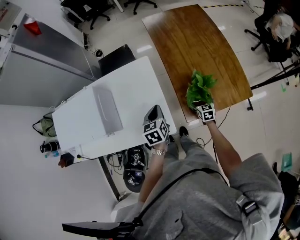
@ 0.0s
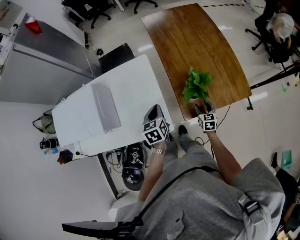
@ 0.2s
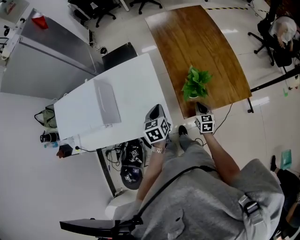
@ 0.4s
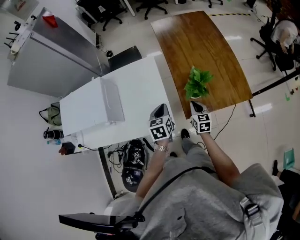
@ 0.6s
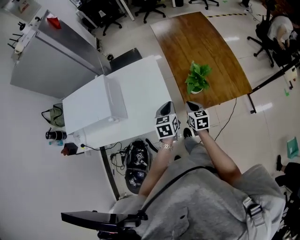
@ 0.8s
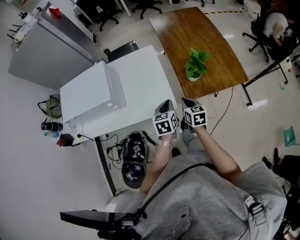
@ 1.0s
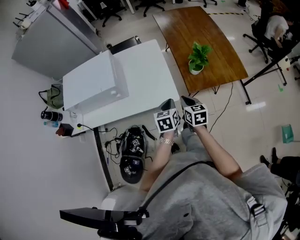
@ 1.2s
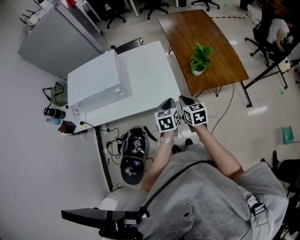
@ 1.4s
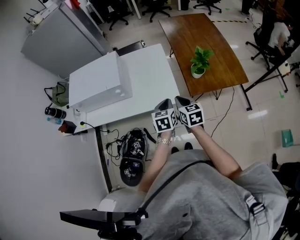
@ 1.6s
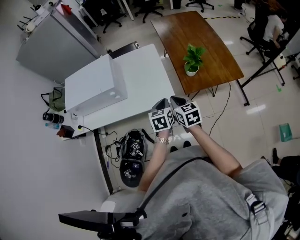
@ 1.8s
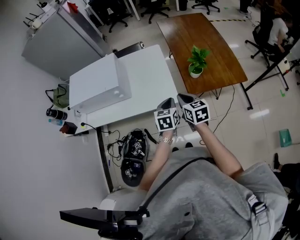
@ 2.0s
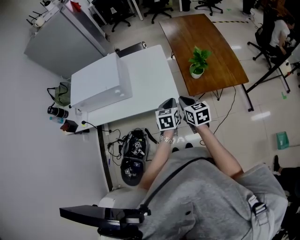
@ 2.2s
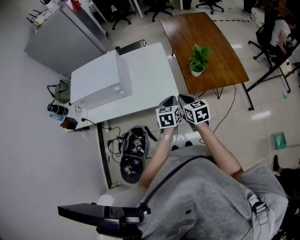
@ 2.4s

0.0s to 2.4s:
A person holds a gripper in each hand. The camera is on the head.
0.0s to 1.2s: The left gripper moves backward, some 25 cm, while the right gripper heads backward, upward and to the left, covering about 35 cm, and closes up.
1.2s to 2.4s: The right gripper travels upward by roughly 5 cm.

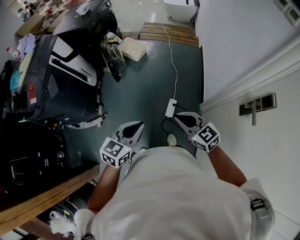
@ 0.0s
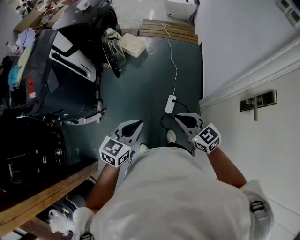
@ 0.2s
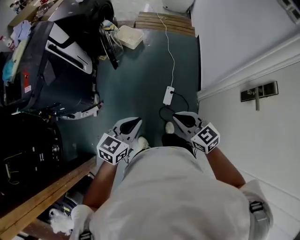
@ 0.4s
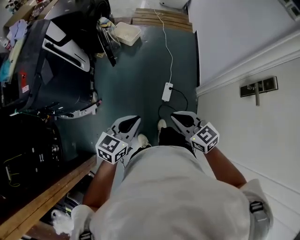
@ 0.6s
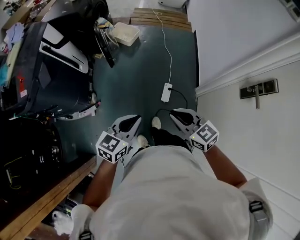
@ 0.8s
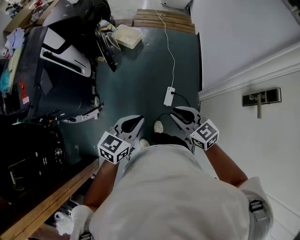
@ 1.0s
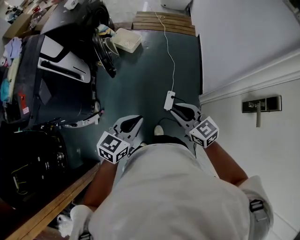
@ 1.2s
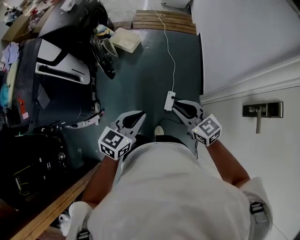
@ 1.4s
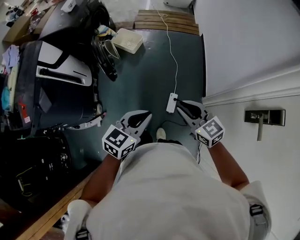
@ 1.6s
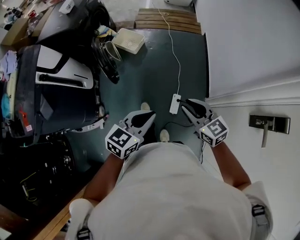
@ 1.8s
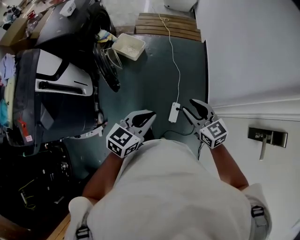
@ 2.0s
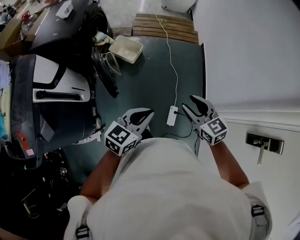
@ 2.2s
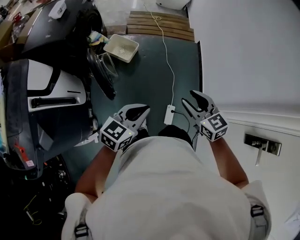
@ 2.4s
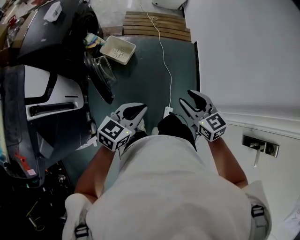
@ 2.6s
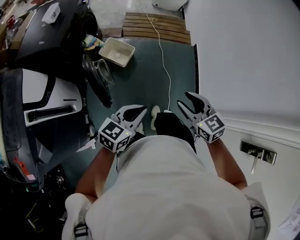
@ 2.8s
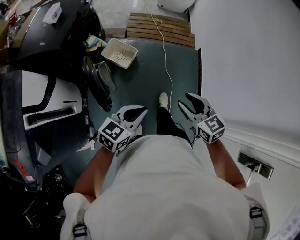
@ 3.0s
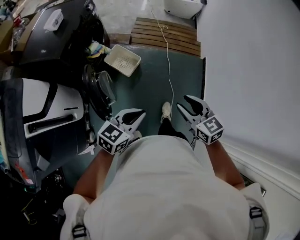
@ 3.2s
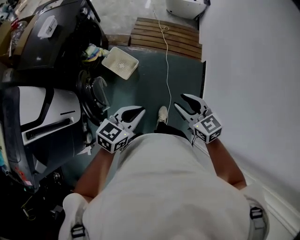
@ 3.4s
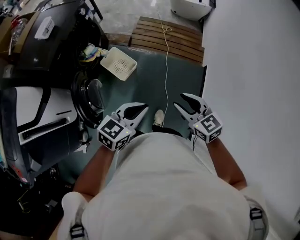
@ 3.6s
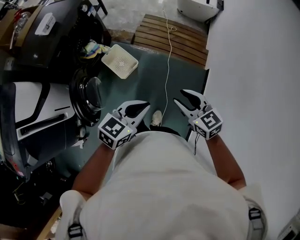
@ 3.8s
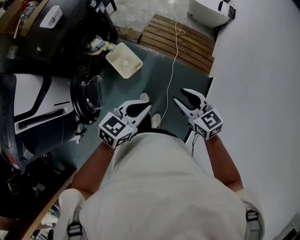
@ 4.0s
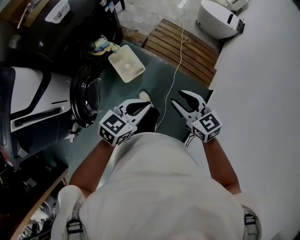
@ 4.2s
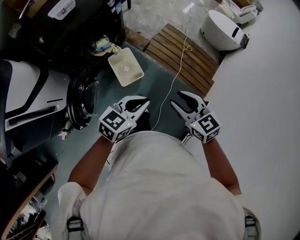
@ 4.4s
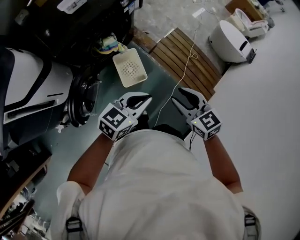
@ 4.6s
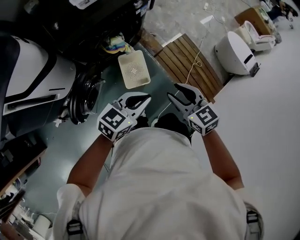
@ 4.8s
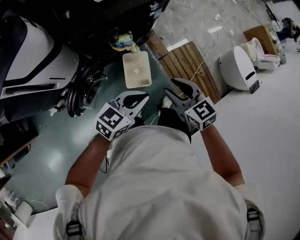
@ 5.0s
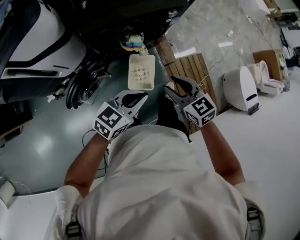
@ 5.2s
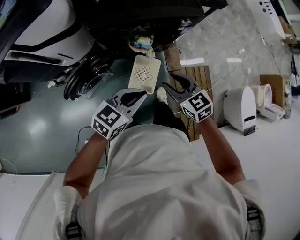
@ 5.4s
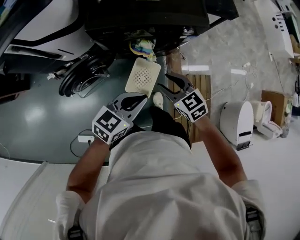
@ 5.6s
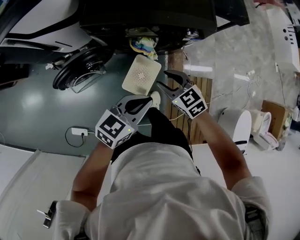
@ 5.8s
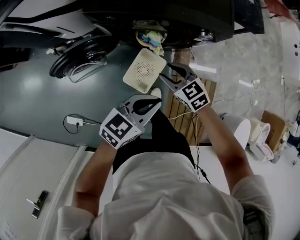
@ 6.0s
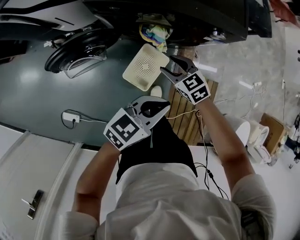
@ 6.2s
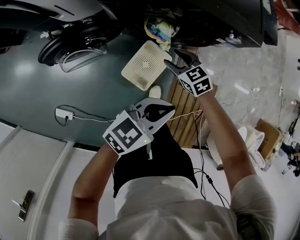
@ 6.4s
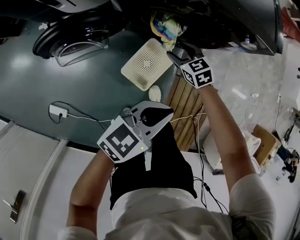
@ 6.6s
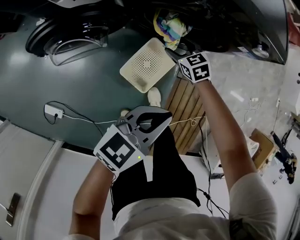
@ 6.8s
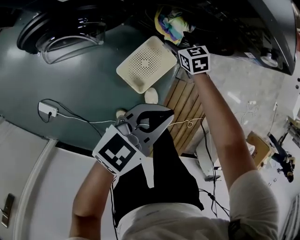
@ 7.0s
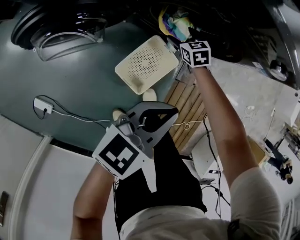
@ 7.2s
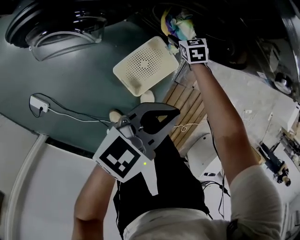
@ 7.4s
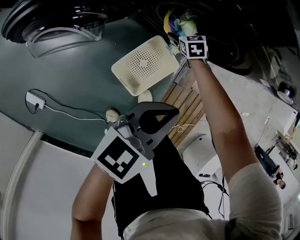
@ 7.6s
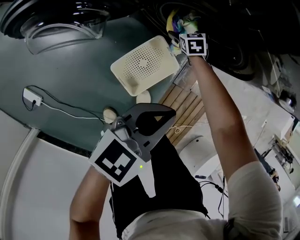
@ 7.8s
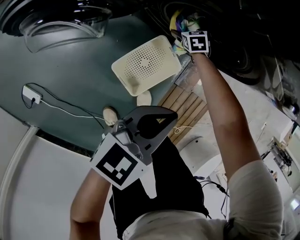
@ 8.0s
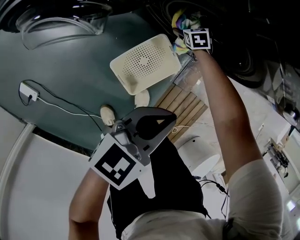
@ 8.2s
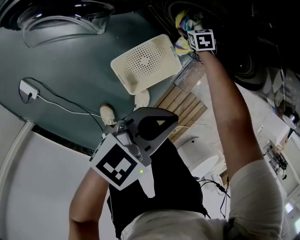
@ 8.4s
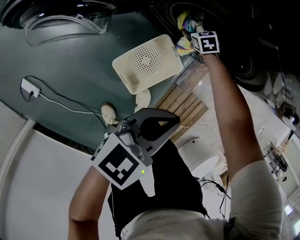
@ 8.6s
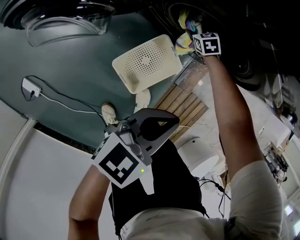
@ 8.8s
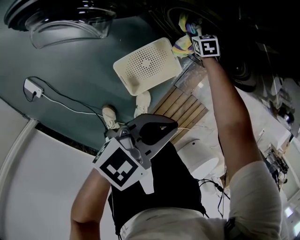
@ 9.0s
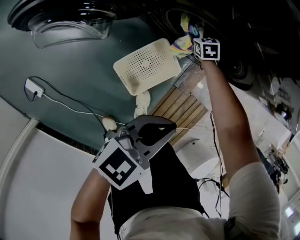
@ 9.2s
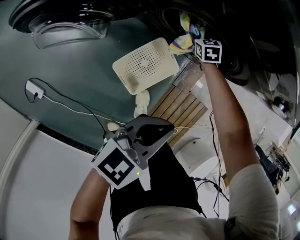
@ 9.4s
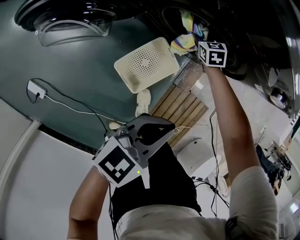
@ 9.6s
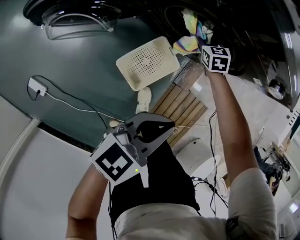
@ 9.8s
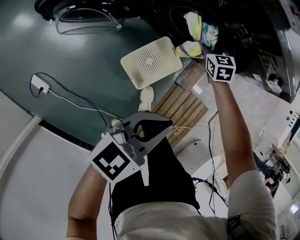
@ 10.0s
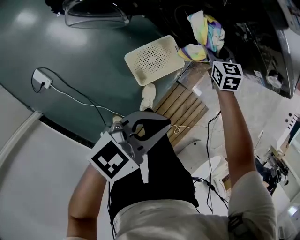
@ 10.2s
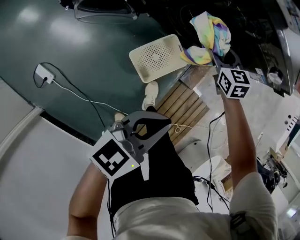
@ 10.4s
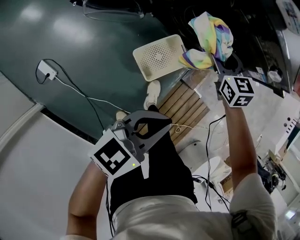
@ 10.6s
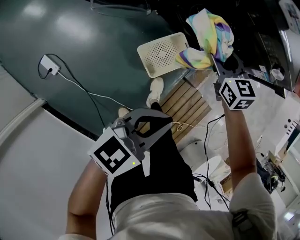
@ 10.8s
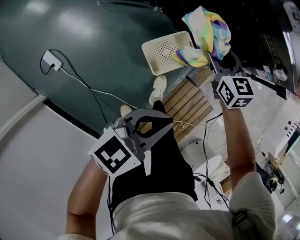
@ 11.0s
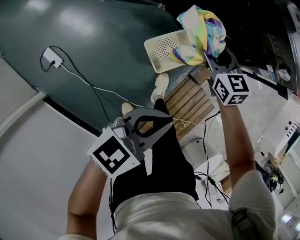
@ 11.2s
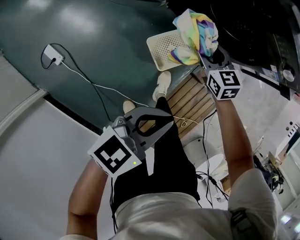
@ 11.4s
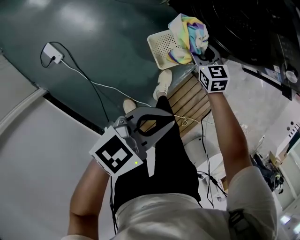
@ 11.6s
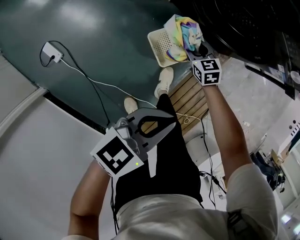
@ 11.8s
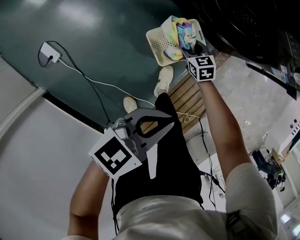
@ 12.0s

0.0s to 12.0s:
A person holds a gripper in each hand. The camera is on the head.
0.0s to 1.6s: Both grippers travel together forward, approximately 15 cm.
1.6s to 3.0s: The right gripper heads forward, covering some 30 cm. The left gripper shifts approximately 35 cm forward and to the left.
3.0s to 4.4s: The pair of grippers is taken roughly 40 cm. The left gripper swivels about 30 degrees, while the right gripper rotates about 30 degrees.
4.4s to 6.0s: The right gripper changes place by approximately 50 cm, and rotates roughly 70 degrees; the left gripper changes place by roughly 35 cm, and turns by roughly 60 degrees.
6.0s to 7.6s: The left gripper heads downward, covering roughly 20 cm. Meanwhile the right gripper is displaced downward and forward by some 50 cm, rotates about 20 degrees, and opens its fingers.
7.6s to 9.0s: The right gripper ends up roughly 5 cm from where it was, and closes up.
9.0s to 10.4s: The left gripper goes some 20 cm backward and upward. The right gripper travels upward and backward by roughly 35 cm, and changes its angle by some 20 degrees.
10.4s to 12.0s: The left gripper shifts about 10 cm backward. Meanwhile the right gripper shifts some 30 cm downward, backward and to the left.

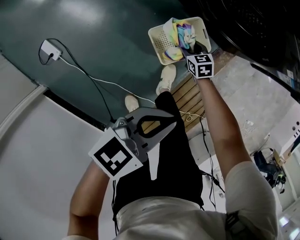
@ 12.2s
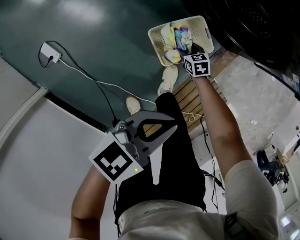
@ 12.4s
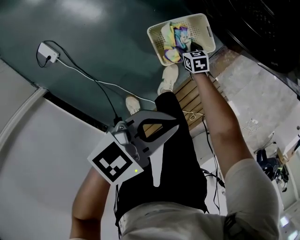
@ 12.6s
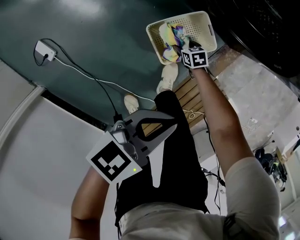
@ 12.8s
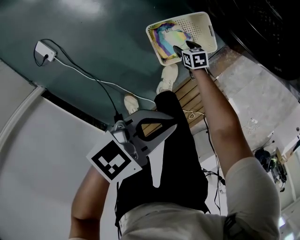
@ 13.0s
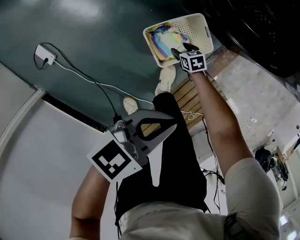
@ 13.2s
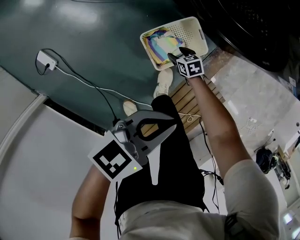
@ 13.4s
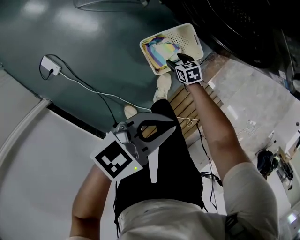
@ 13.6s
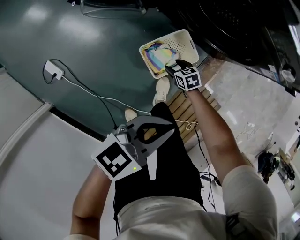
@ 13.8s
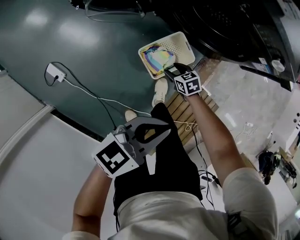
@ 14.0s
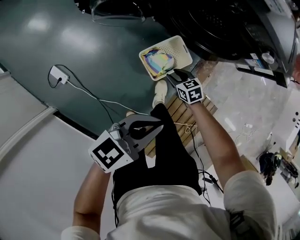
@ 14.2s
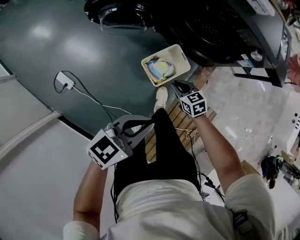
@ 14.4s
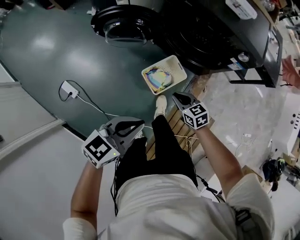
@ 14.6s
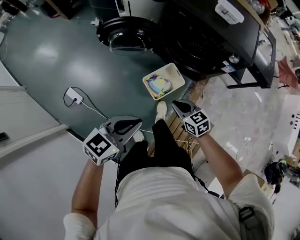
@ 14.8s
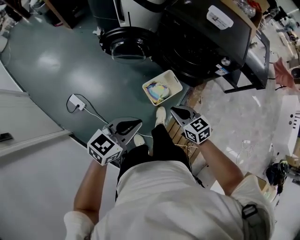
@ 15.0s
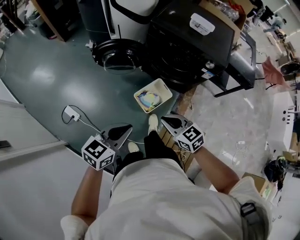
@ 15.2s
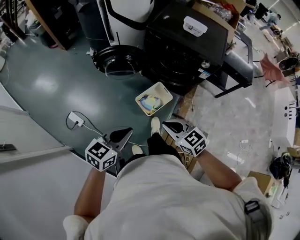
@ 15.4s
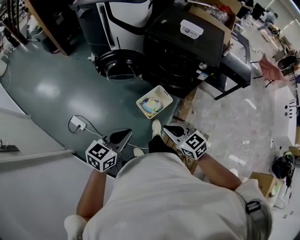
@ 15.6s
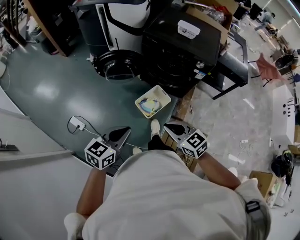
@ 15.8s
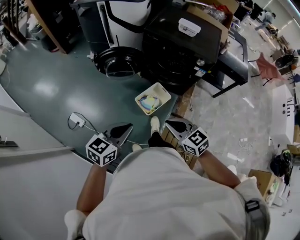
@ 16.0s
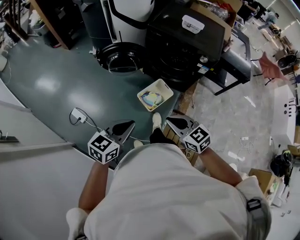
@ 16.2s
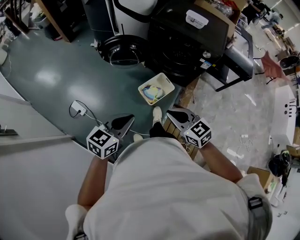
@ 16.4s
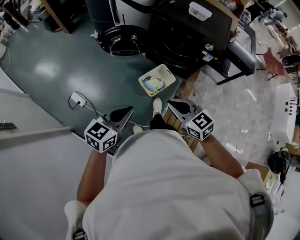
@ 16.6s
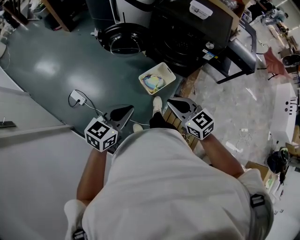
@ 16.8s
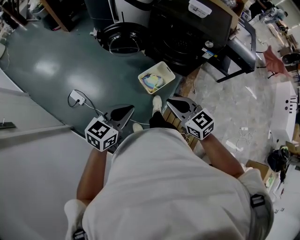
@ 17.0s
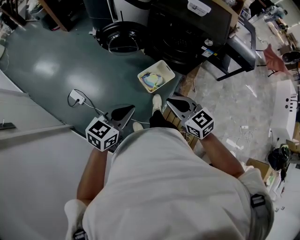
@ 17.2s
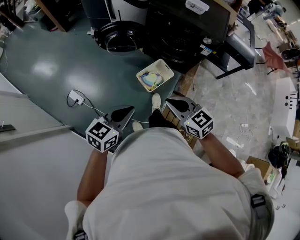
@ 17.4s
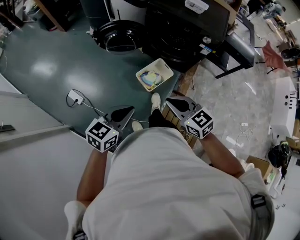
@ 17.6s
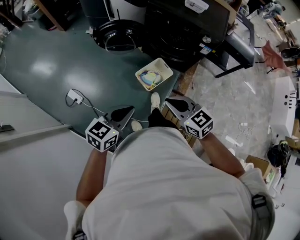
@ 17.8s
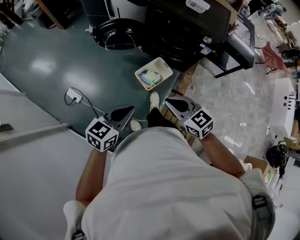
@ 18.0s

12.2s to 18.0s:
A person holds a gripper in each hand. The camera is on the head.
12.2s to 13.6s: The left gripper moves about 5 cm. Meanwhile the right gripper goes downward and returns, approximately 15 cm each way.
13.6s to 15.0s: The right gripper travels upward by roughly 50 cm, rotates about 30 degrees, and closes. Meanwhile the left gripper moves upward, about 25 cm.
15.0s to 16.6s: The right gripper travels upward and backward by some 20 cm. The left gripper travels backward and upward by about 10 cm.
16.6s to 18.0s: The grippers make only small movements.

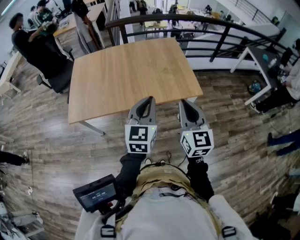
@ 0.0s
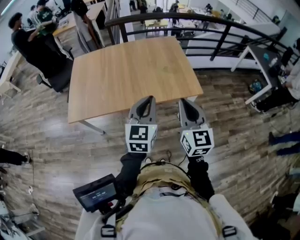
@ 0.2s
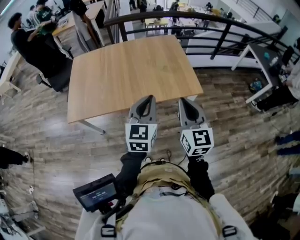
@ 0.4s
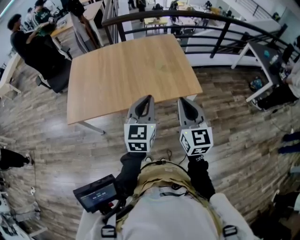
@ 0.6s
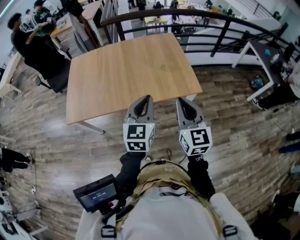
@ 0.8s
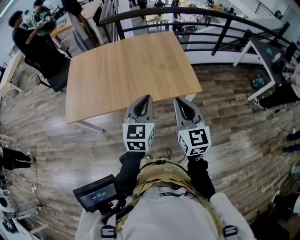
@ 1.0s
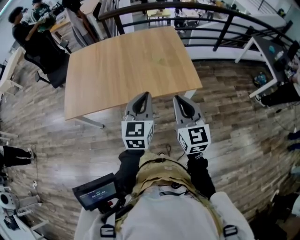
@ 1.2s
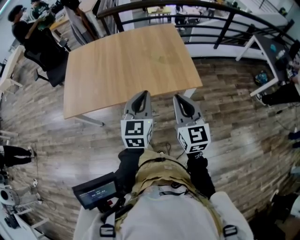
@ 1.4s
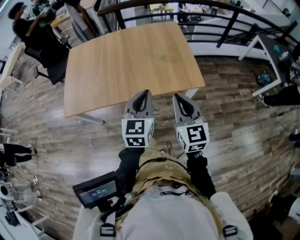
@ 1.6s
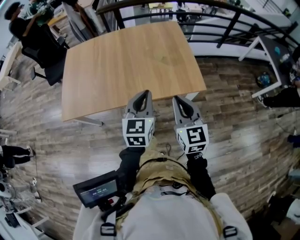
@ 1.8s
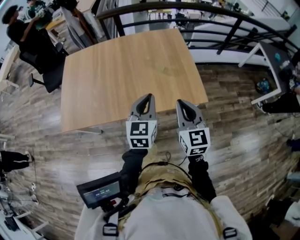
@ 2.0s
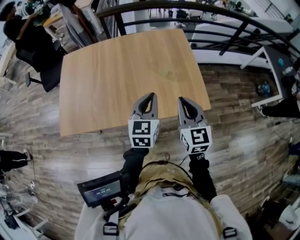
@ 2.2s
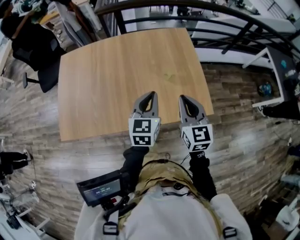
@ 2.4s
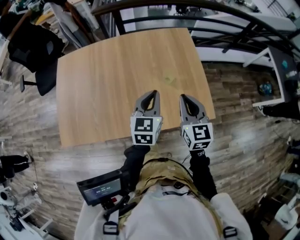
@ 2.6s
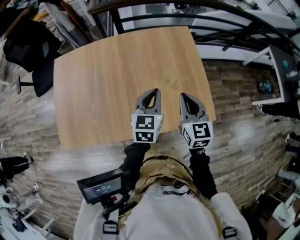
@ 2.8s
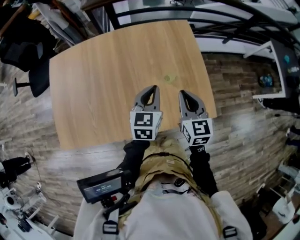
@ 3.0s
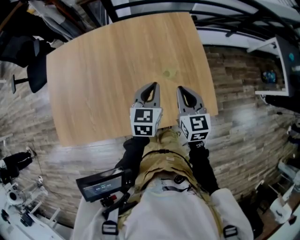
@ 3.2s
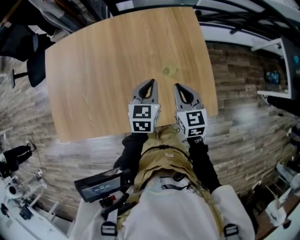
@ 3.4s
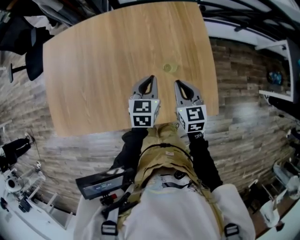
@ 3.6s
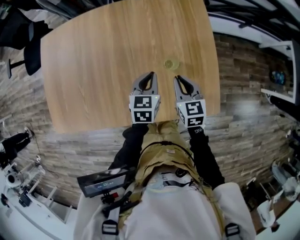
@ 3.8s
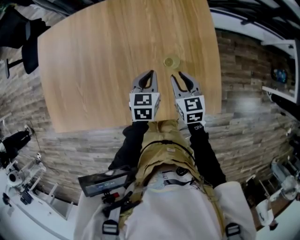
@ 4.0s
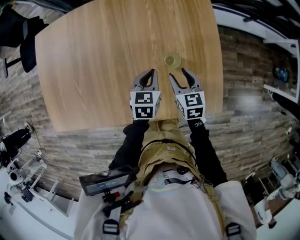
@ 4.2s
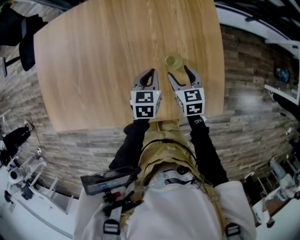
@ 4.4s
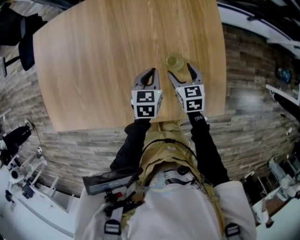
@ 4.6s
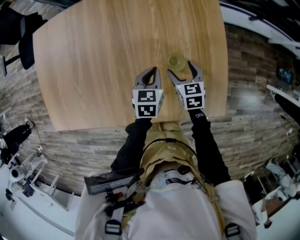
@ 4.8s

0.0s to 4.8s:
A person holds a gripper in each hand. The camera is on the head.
0.0s to 1.6s: Both grippers move downward and forward, approximately 10 cm.
1.6s to 3.2s: Both grippers travel together forward, approximately 35 cm.
3.2s to 4.8s: The right gripper is displaced downward and forward by some 25 cm, rotates about 20 degrees, and opens. The left gripper heads downward, covering approximately 15 cm.
